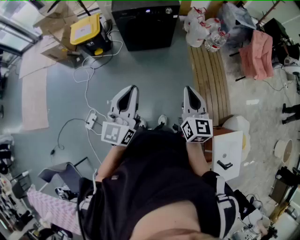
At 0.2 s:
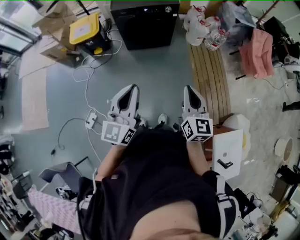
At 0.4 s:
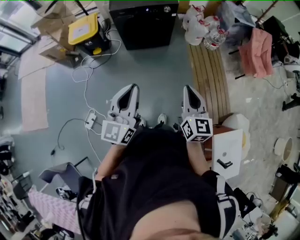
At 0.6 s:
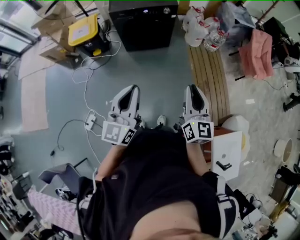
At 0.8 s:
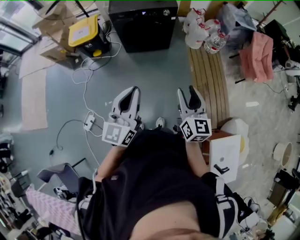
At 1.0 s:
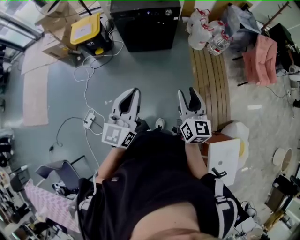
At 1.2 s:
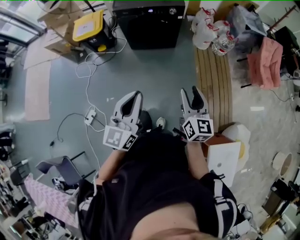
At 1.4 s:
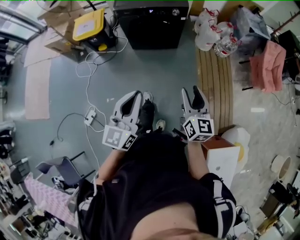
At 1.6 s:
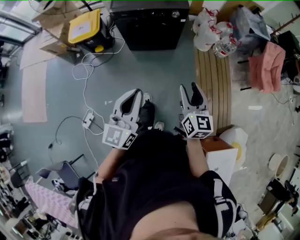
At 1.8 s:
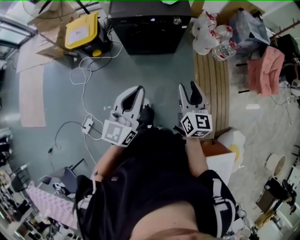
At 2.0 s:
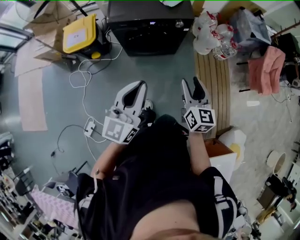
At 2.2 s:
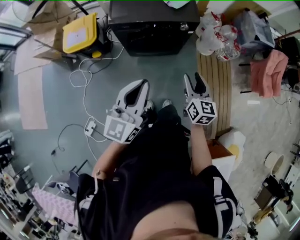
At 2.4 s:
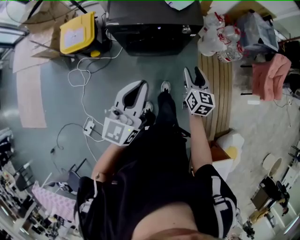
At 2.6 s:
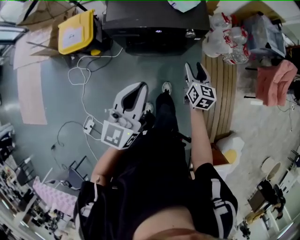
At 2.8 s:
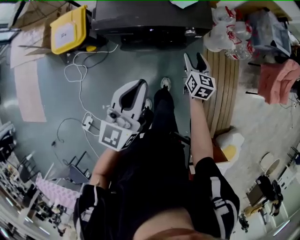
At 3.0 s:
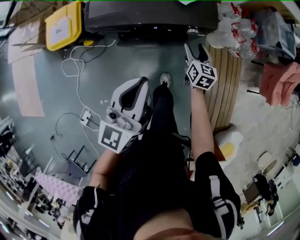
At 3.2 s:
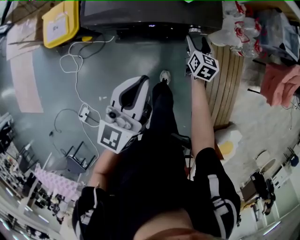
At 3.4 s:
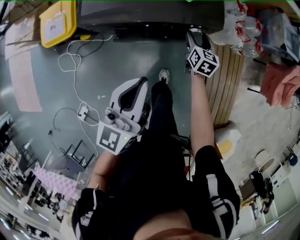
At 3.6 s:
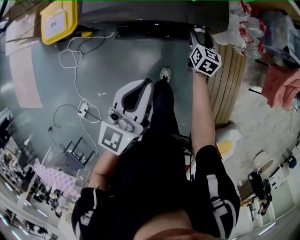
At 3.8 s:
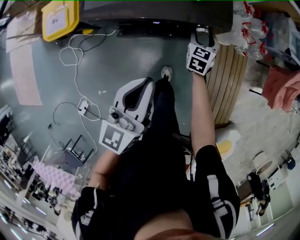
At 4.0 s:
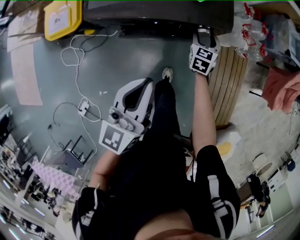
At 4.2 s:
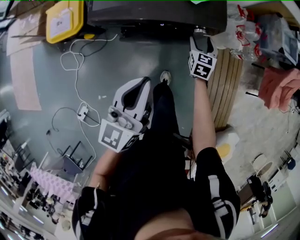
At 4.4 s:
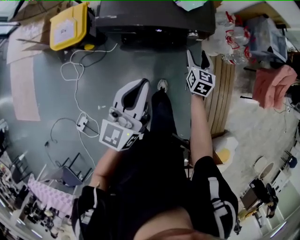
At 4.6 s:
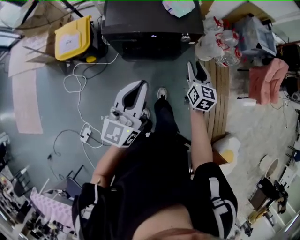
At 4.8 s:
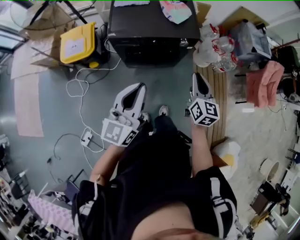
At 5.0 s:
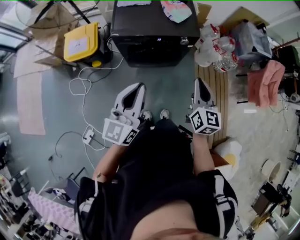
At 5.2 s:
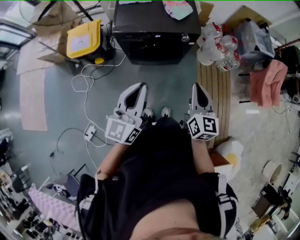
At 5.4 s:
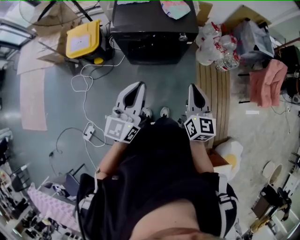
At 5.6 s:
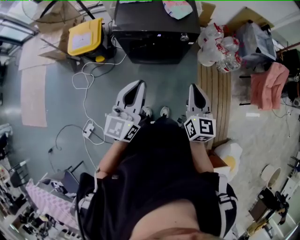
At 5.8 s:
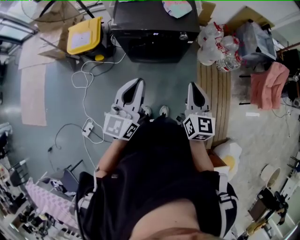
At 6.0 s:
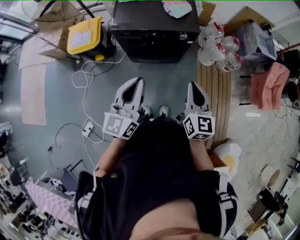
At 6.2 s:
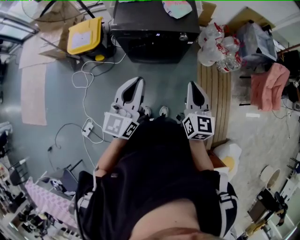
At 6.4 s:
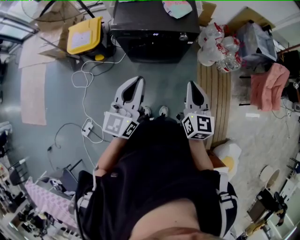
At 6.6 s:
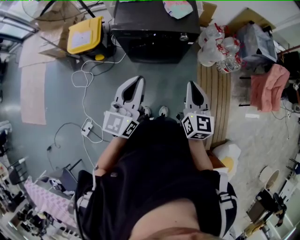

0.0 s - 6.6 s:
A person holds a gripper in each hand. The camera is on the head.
0.0 s - 1.6 s: The two grippers go about 25 cm forward. The right gripper opens.
1.6 s - 3.2 s: The two grippers travel together, forward, roughly 60 cm. The right gripper travels downward by roughly 35 cm, and rotates some 20 degrees.
3.2 s - 5.0 s: The left gripper shifts about 35 cm backward and upward. The right gripper shifts roughly 50 cm upward and backward, turns by about 20 degrees, and closes.
5.0 s - 6.6 s: The left gripper travels to the right by about 5 cm.

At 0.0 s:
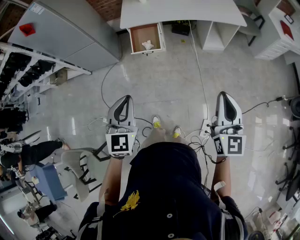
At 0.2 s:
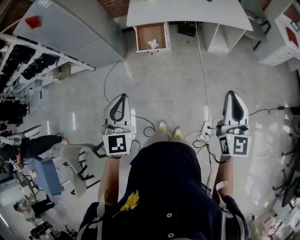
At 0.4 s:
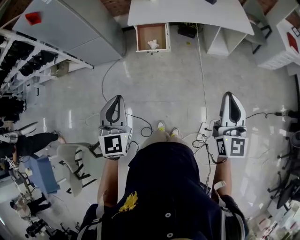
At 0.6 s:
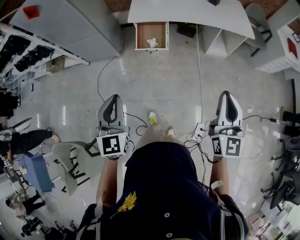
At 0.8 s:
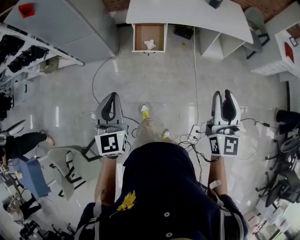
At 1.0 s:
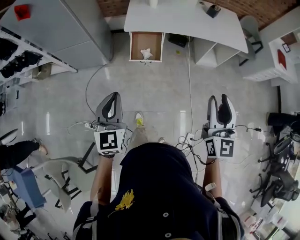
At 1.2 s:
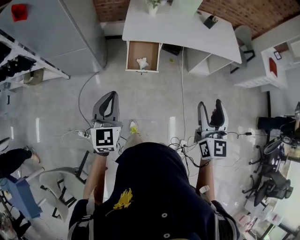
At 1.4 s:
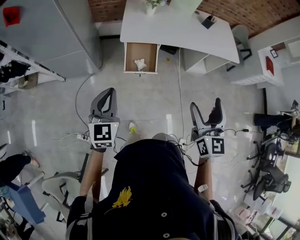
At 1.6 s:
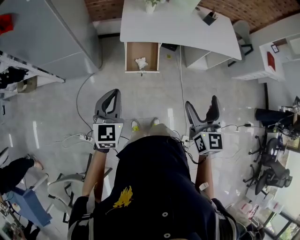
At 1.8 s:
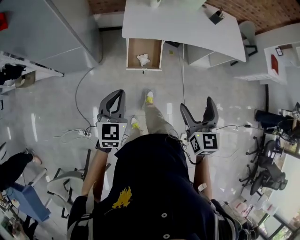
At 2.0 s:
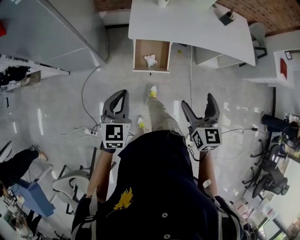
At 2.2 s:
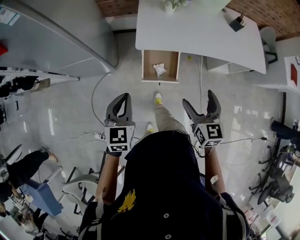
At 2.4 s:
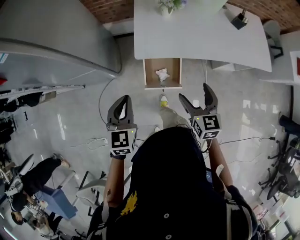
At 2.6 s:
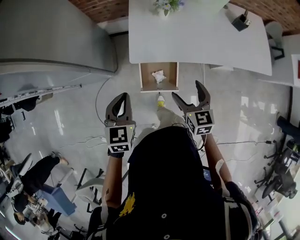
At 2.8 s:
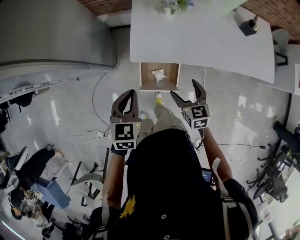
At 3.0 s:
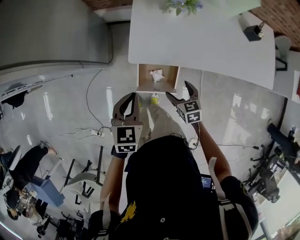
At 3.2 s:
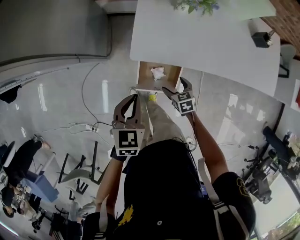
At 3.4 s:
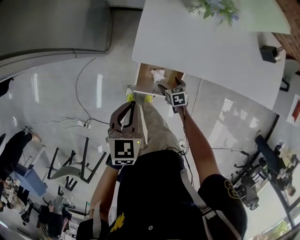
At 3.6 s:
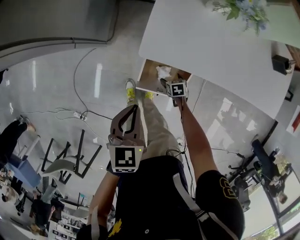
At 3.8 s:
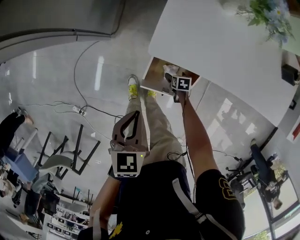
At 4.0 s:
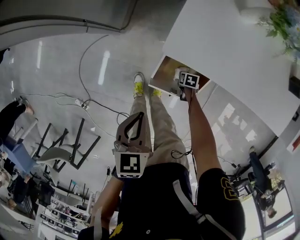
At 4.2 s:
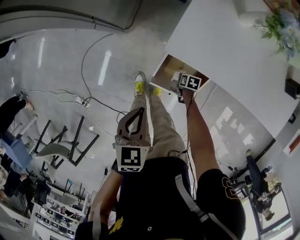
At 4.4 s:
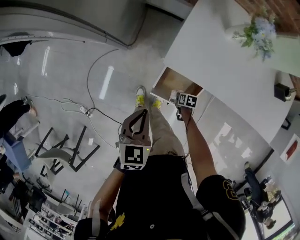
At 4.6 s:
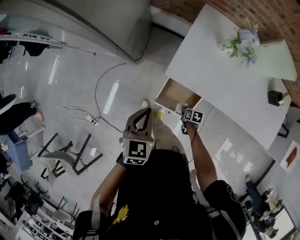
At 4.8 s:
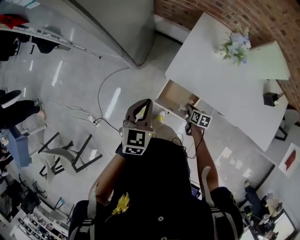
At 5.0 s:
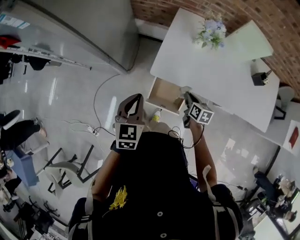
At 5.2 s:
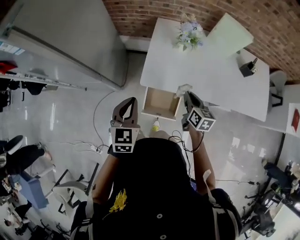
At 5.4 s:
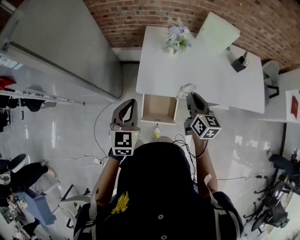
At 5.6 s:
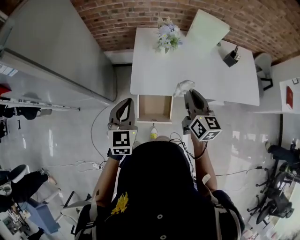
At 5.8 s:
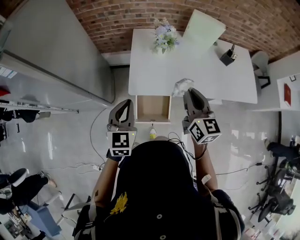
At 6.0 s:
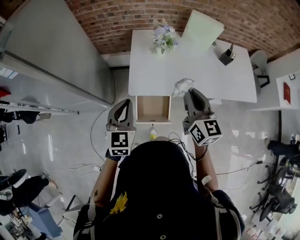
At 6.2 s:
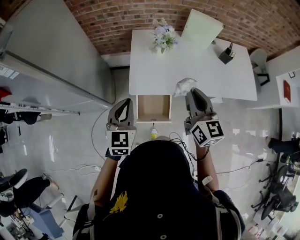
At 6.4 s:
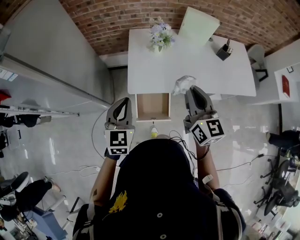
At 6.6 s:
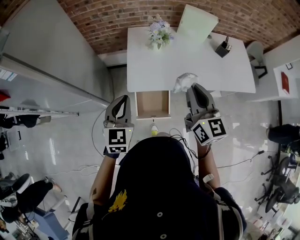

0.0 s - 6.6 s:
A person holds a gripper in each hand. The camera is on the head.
0.0 s - 1.6 s: The grippers both shift forward and to the left by about 40 cm. The right gripper opens up.
1.6 s - 3.2 s: The right gripper is displaced downward and forward by approximately 60 cm, and points its fingers roughly 40 degrees further downward; the left gripper travels forward and downward by roughly 40 cm, and rotates roughly 30 degrees.
3.2 s - 5.0 s: The right gripper reaches some 30 cm downward, then returns, turns by some 30 degrees, and closes up. Meanwhile the left gripper travels upward by roughly 10 cm.
5.0 s - 6.6 s: The left gripper is displaced upward by some 10 cm, and changes its angle by roughly 20 degrees. The right gripper shifts approximately 35 cm upward, and tips its fingers upward by roughly 40 degrees.

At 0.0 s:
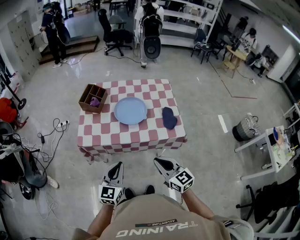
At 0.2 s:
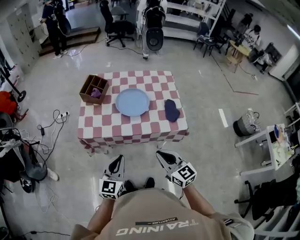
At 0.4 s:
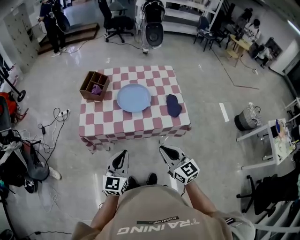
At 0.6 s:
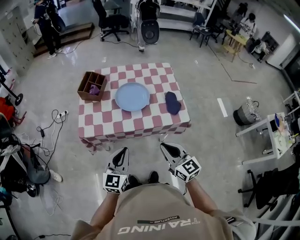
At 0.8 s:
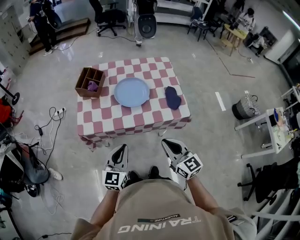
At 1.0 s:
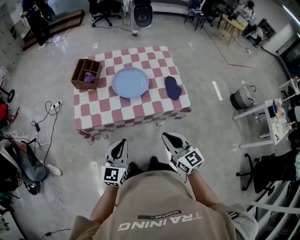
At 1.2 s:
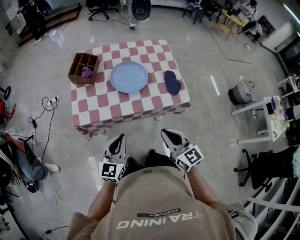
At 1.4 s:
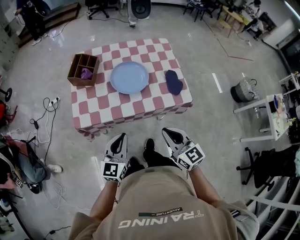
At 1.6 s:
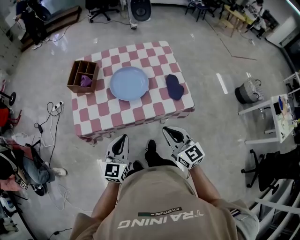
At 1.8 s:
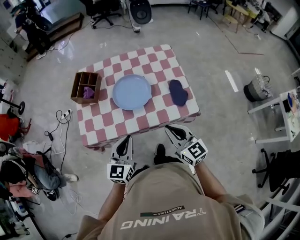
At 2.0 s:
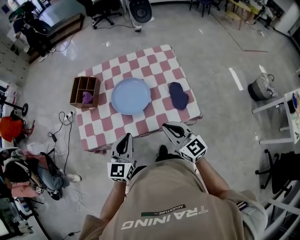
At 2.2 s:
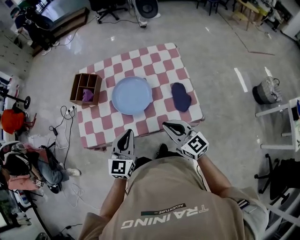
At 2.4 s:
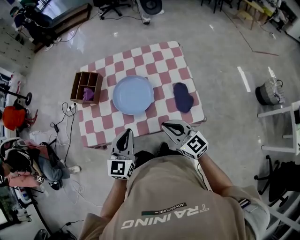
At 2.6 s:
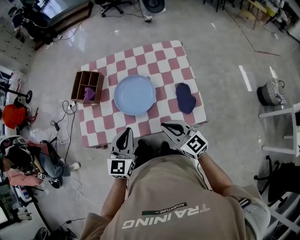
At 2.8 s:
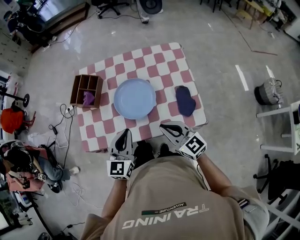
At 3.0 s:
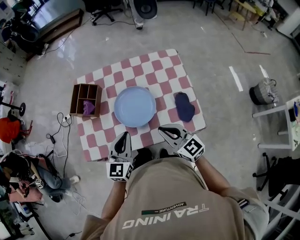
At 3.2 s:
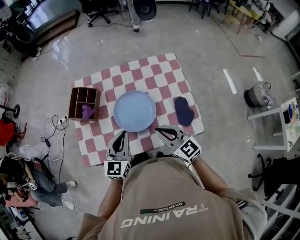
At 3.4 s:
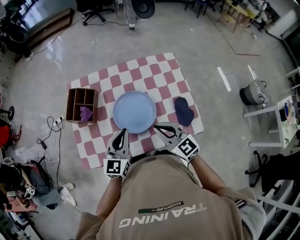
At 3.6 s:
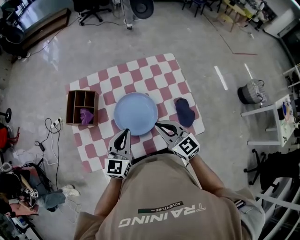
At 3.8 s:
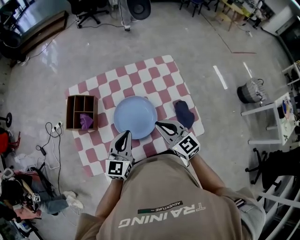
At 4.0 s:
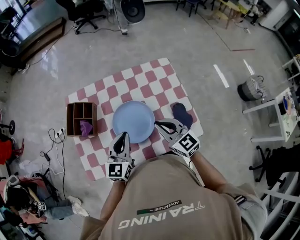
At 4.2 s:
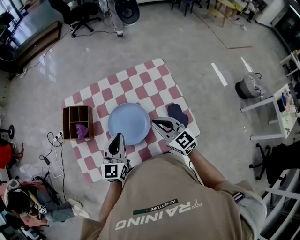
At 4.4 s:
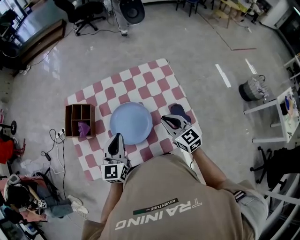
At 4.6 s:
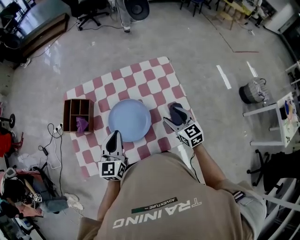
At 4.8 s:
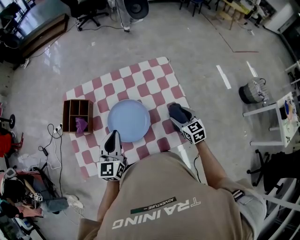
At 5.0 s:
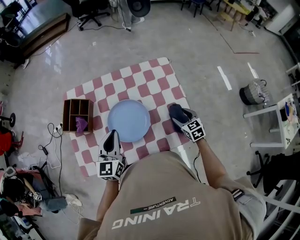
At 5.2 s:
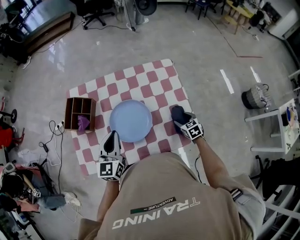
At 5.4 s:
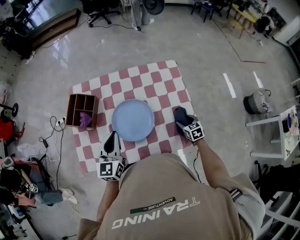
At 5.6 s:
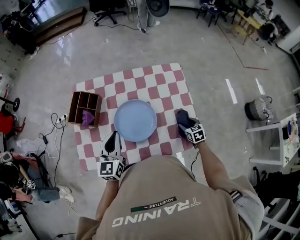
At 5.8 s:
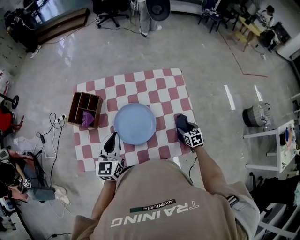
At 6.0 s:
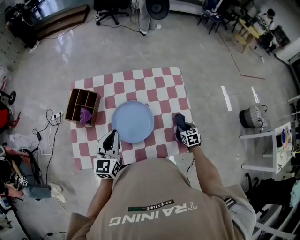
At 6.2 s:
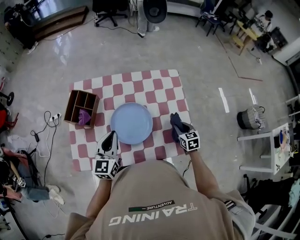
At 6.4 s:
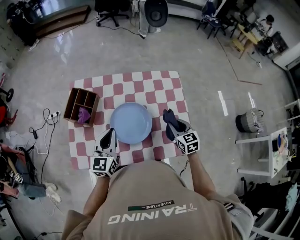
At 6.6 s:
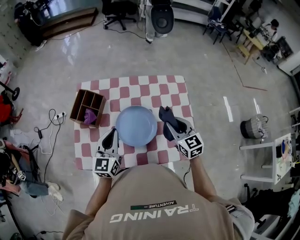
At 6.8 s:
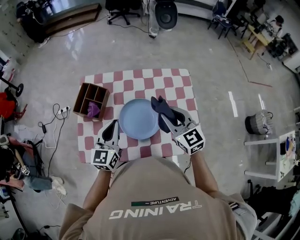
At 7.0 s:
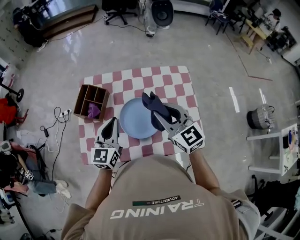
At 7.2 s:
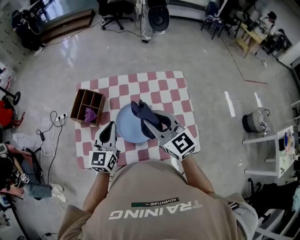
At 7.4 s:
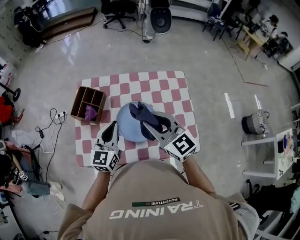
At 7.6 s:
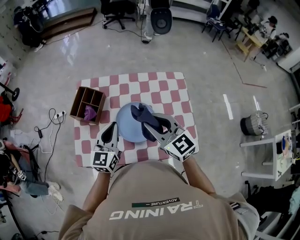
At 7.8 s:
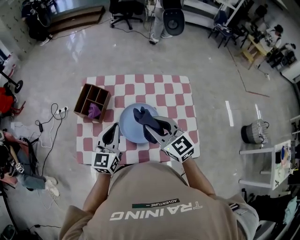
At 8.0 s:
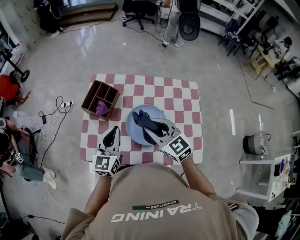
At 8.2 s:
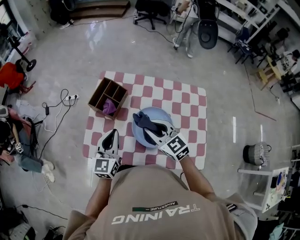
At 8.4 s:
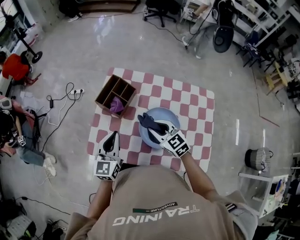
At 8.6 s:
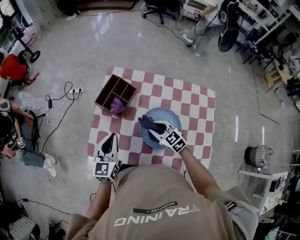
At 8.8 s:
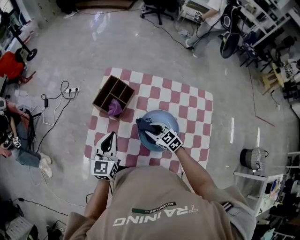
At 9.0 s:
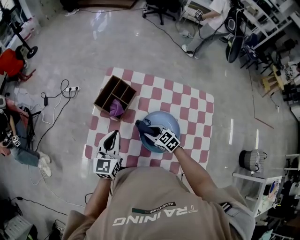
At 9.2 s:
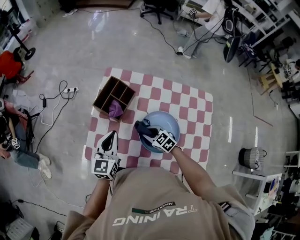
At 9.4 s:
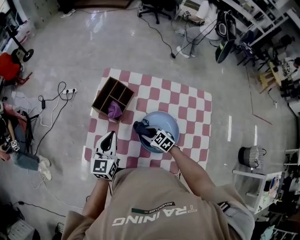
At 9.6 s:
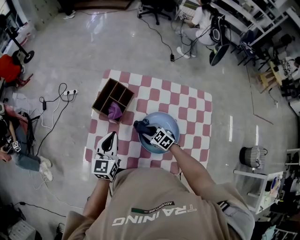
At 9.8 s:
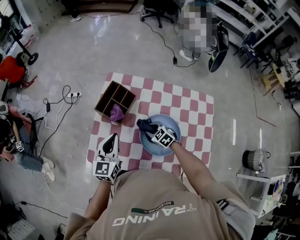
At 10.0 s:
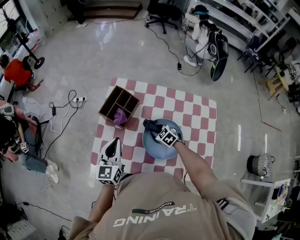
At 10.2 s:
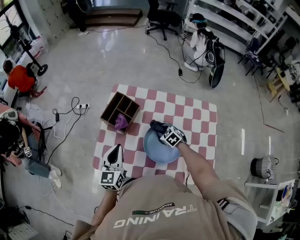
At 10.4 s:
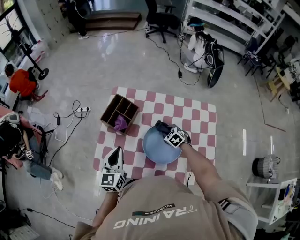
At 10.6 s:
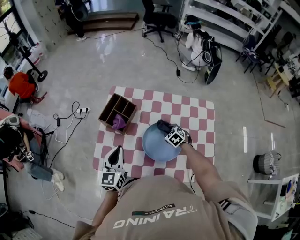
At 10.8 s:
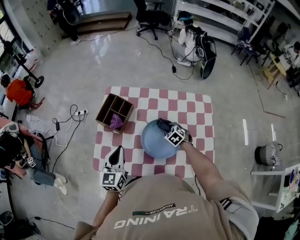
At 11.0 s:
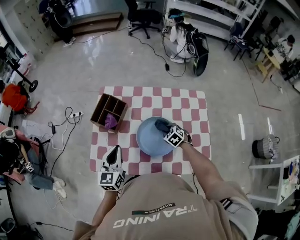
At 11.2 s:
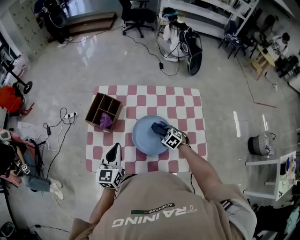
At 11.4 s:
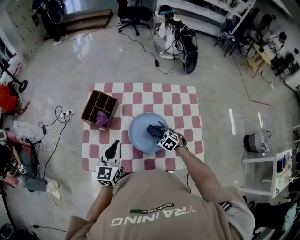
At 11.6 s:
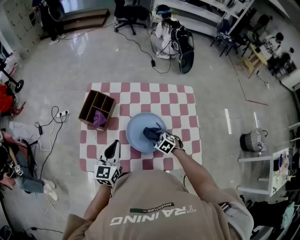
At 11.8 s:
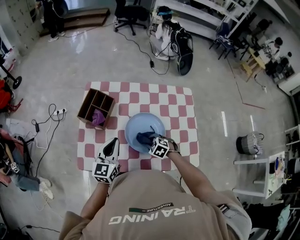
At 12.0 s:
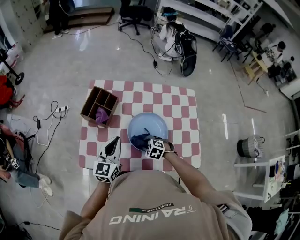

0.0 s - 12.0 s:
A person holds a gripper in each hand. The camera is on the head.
0.0 s - 1.6 s: The two grippers go roughly 10 cm forward.
1.6 s - 3.0 s: Both grippers travel together forward, roughly 15 cm.
3.0 s - 4.4 s: The left gripper heads forward, covering approximately 10 cm. The right gripper is displaced forward and to the right by approximately 15 cm.
4.4 s - 6.0 s: The right gripper moves downward and to the right, some 25 cm, tips its fingers downward by about 30 degrees, and opens, then closes again.
6.0 s - 7.6 s: The right gripper moves upward and to the left, about 40 cm, and points its fingers about 40 degrees further upward.
7.6 s - 9.0 s: The right gripper is displaced downward by approximately 25 cm, and angles its fingers downward, by some 30 degrees. The left gripper shifts about 15 cm to the left and downward.
9.0 s - 10.4 s: The right gripper shifts about 10 cm to the right, and swivels roughly 20 degrees.
10.4 s - 12.0 s: The left gripper heads to the right, covering some 5 cm. Meanwhile the right gripper heads backward, covering some 15 cm.
